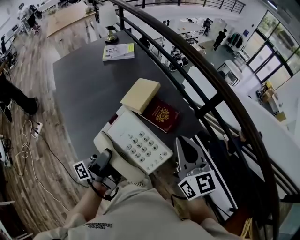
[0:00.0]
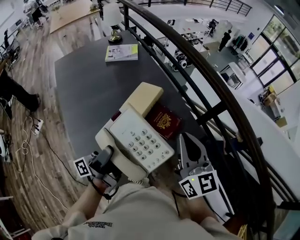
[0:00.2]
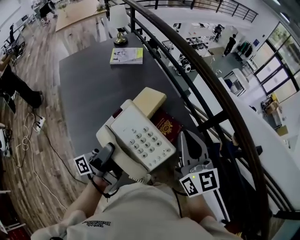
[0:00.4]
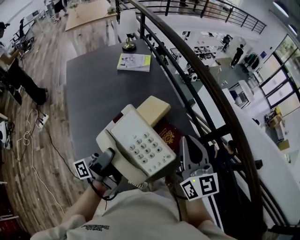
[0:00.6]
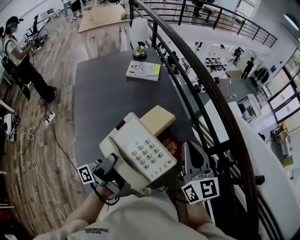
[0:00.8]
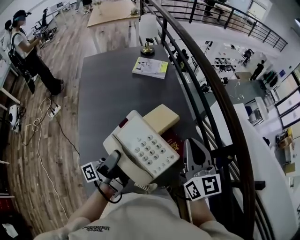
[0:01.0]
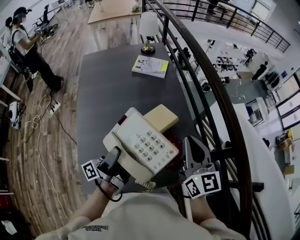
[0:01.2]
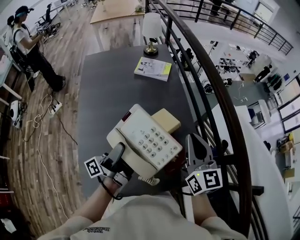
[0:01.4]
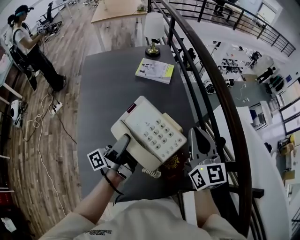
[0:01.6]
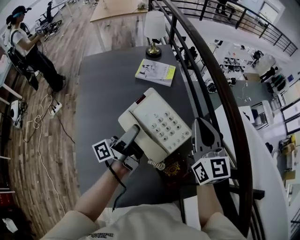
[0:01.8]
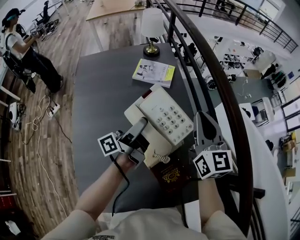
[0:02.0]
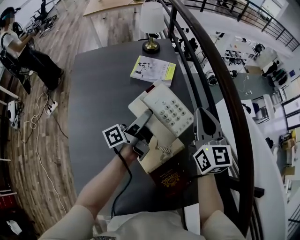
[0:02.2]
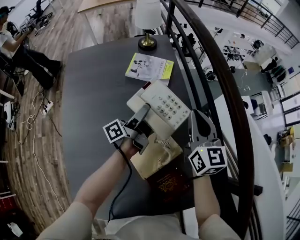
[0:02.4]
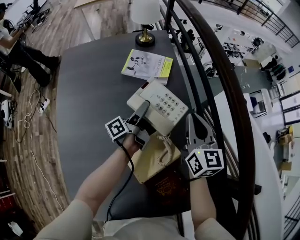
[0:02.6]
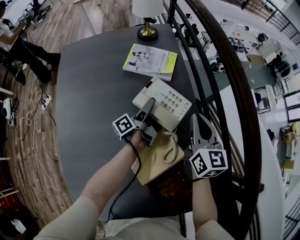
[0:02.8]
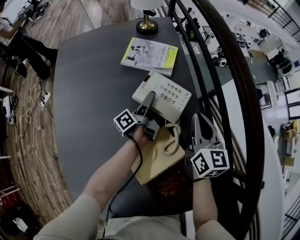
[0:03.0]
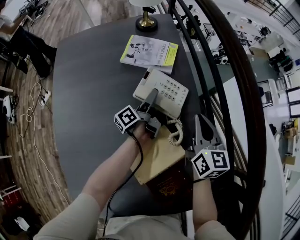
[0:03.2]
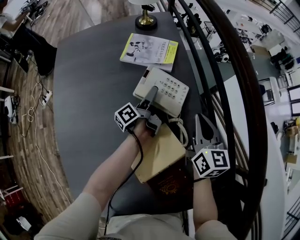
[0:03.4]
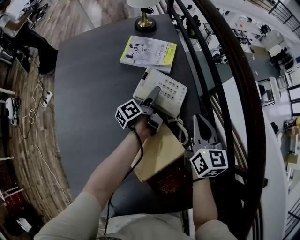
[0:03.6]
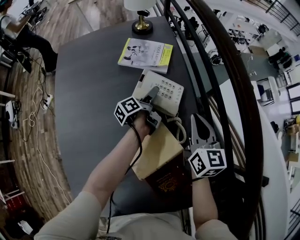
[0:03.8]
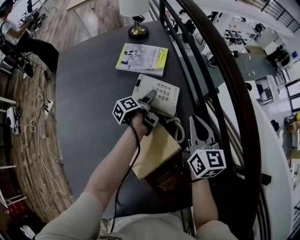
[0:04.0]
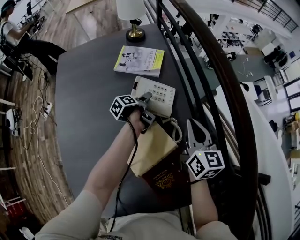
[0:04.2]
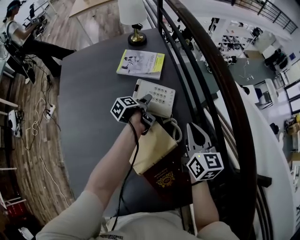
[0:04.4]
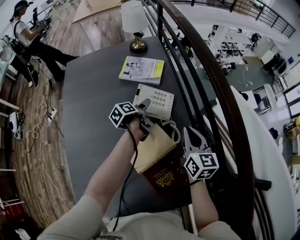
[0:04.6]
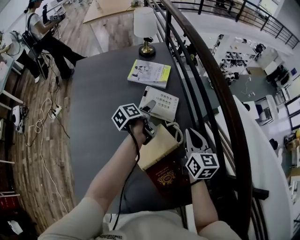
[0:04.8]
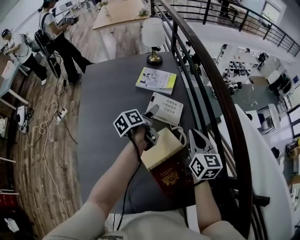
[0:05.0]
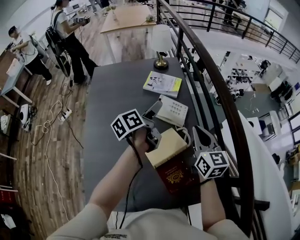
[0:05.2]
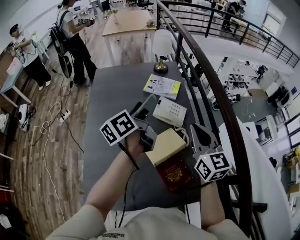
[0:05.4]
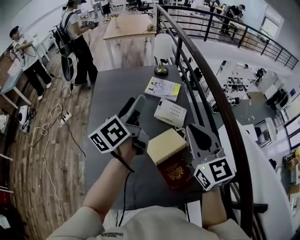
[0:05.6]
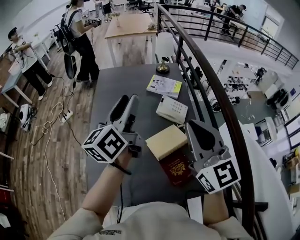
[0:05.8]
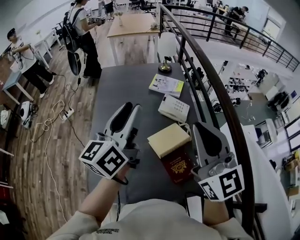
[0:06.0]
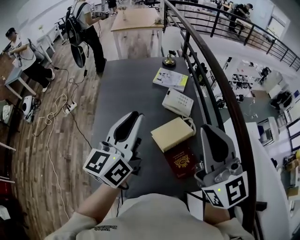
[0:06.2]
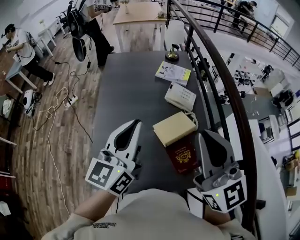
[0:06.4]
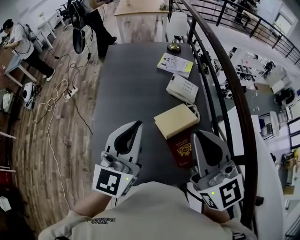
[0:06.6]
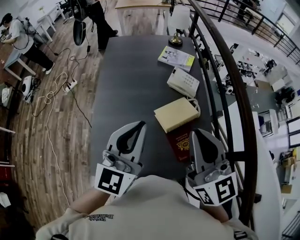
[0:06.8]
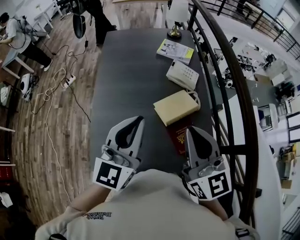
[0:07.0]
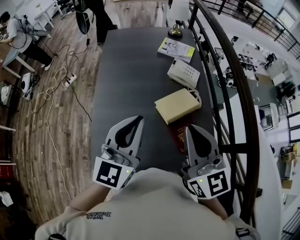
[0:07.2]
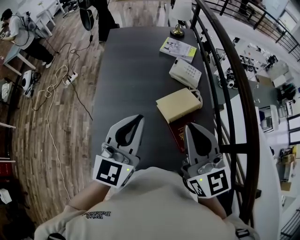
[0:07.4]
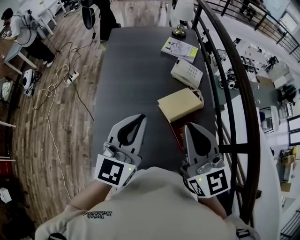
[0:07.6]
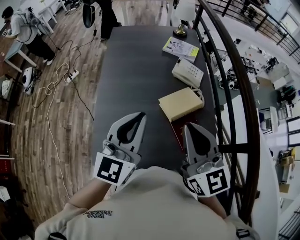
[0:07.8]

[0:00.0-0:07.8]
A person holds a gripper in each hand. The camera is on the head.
0:00.0 to 0:01.6: The right gripper shifts by some 30 cm.
0:01.6 to 0:03.2: The right gripper changes place by some 30 cm.
0:03.2 to 0:04.6: The right gripper ends up roughly 10 cm from where it was.
0:04.6 to 0:06.2: The right gripper shifts some 35 cm upward, and angles its fingers upward, by some 30 degrees.
0:06.2 to 0:07.8: The right gripper shifts approximately 10 cm downward.

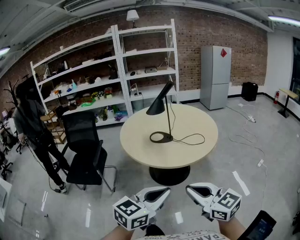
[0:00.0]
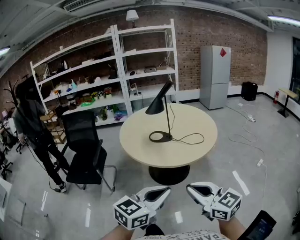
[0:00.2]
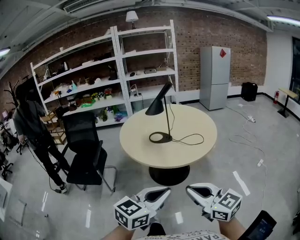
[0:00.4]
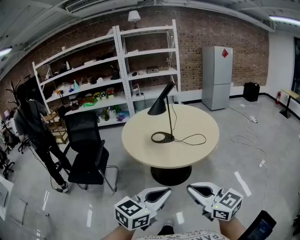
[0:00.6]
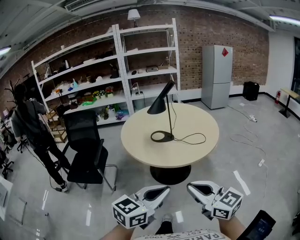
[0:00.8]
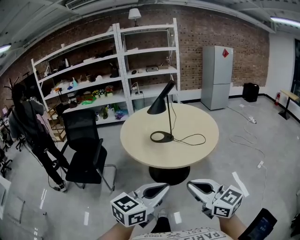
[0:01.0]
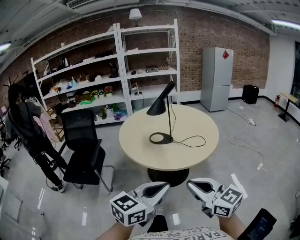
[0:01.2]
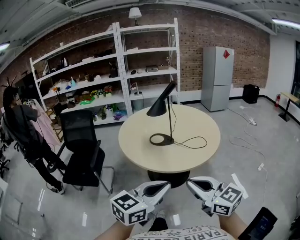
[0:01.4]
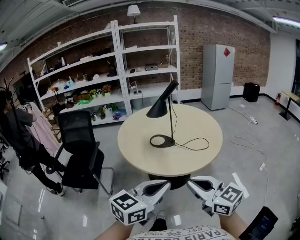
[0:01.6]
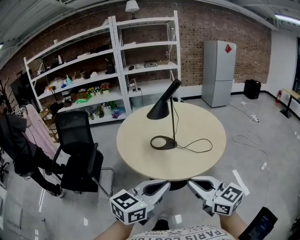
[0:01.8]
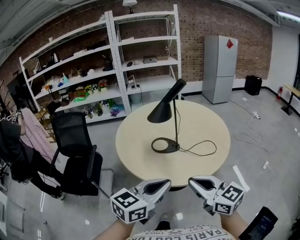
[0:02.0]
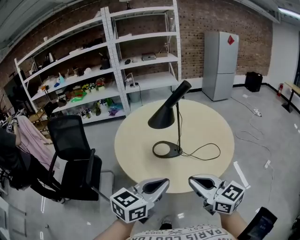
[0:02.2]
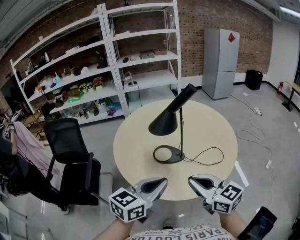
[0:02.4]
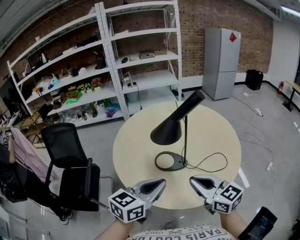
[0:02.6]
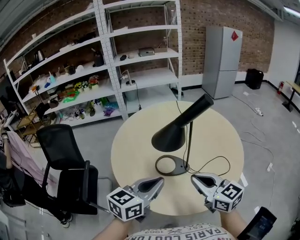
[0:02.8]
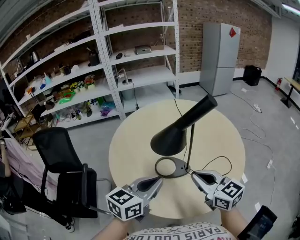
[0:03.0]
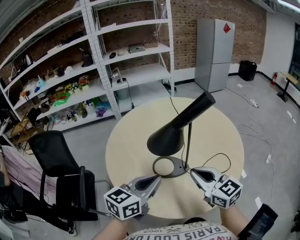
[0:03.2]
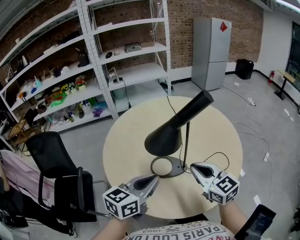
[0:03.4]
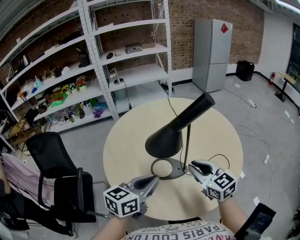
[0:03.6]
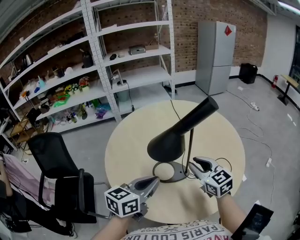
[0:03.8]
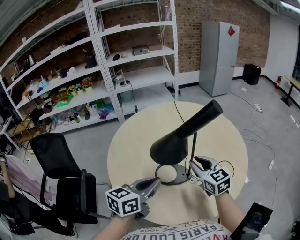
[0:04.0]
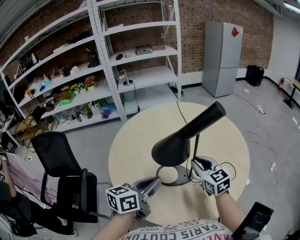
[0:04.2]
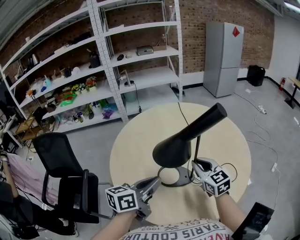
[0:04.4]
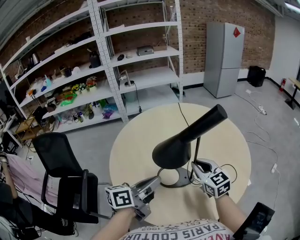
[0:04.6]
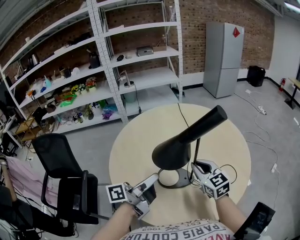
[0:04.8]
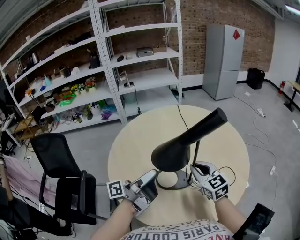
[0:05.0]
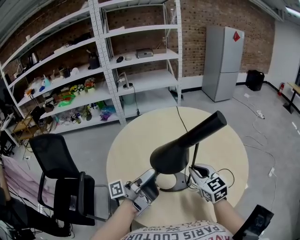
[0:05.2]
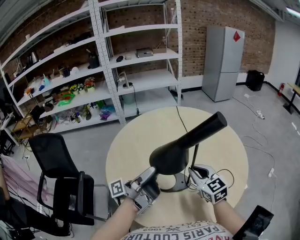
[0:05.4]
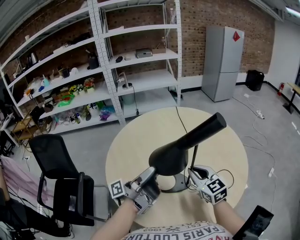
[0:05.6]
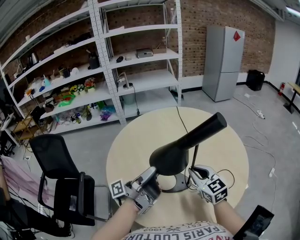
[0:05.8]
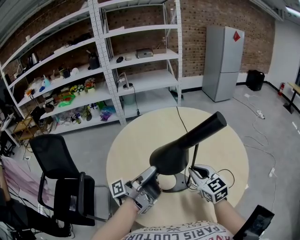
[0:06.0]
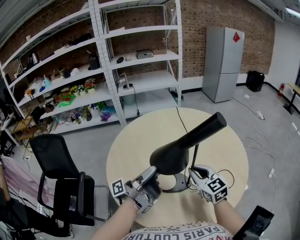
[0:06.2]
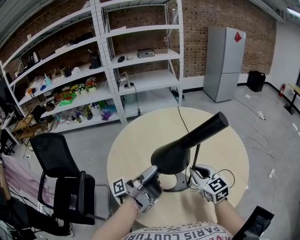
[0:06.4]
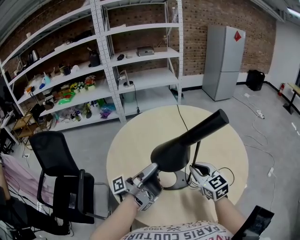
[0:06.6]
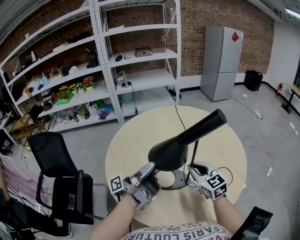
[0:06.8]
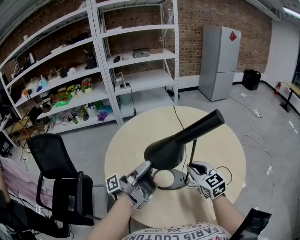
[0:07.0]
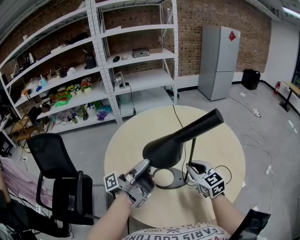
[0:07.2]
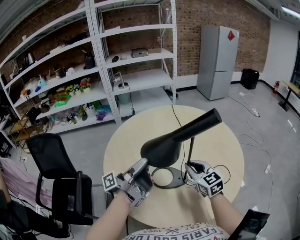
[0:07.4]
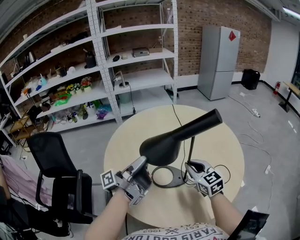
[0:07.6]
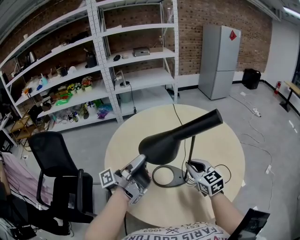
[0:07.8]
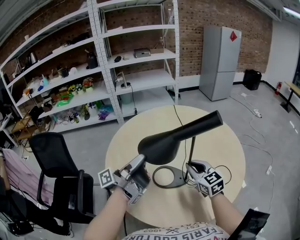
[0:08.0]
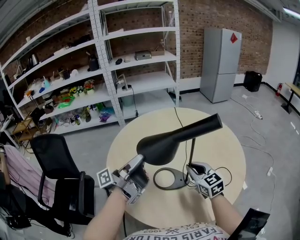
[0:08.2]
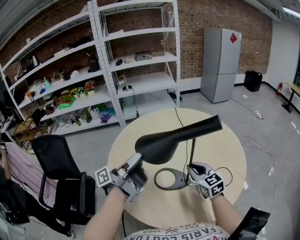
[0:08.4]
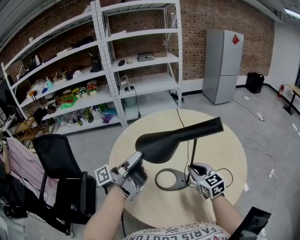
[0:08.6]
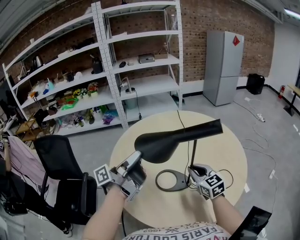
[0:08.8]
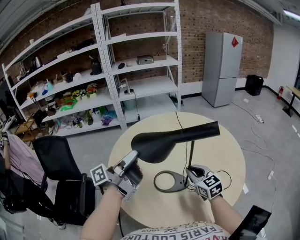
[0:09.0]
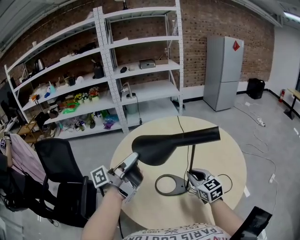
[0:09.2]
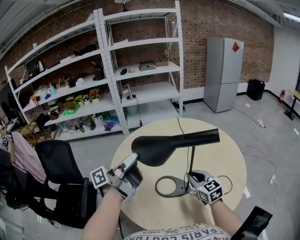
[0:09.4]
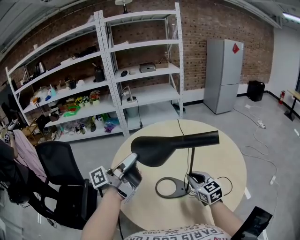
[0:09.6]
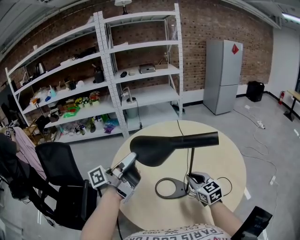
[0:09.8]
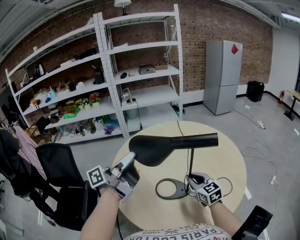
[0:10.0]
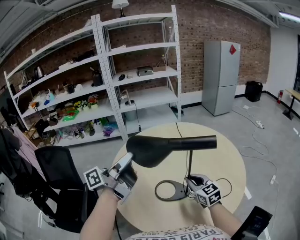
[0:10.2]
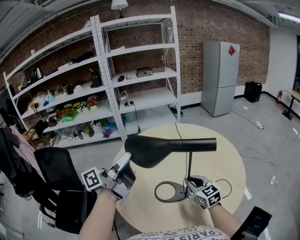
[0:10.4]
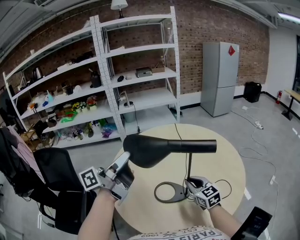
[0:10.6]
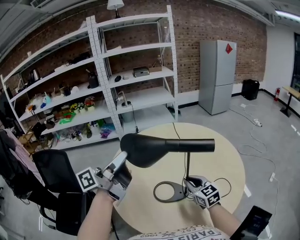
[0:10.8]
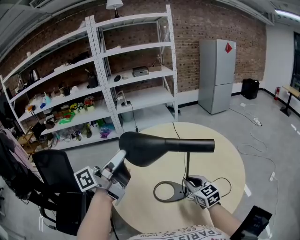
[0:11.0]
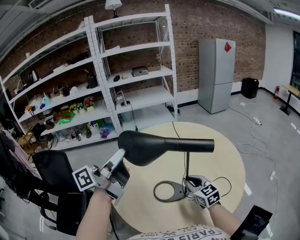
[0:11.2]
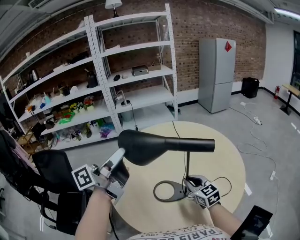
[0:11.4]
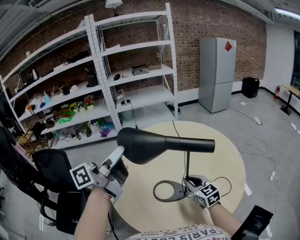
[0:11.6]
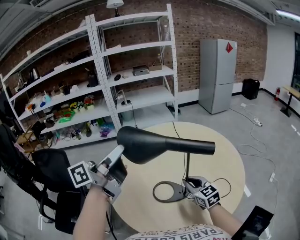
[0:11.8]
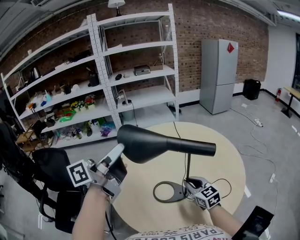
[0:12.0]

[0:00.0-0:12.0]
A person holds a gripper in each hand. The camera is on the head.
0:00.0 to 0:01.6: The grippers both shift forward by some 10 cm.
0:01.6 to 0:03.0: The two grippers go roughly 35 cm forward.
0:03.0 to 0:04.4: The left gripper is displaced forward by roughly 5 cm; the right gripper heads forward and downward, covering roughly 15 cm.
0:04.4 to 0:06.0: The left gripper heads forward, covering about 5 cm, and tips its fingers upward by about 40 degrees.
0:06.0 to 0:07.6: The grippers make only small movements.
0:07.6 to 0:09.0: The left gripper moves upward, about 5 cm.
0:09.0 to 0:10.4: The left gripper is displaced upward by approximately 5 cm.
0:10.4 to 0:12.0: The left gripper travels upward by approximately 5 cm.

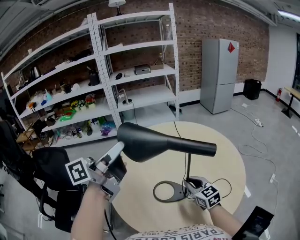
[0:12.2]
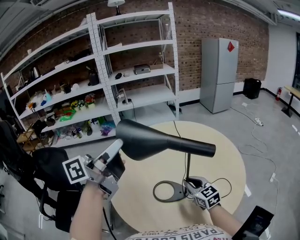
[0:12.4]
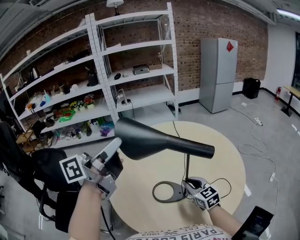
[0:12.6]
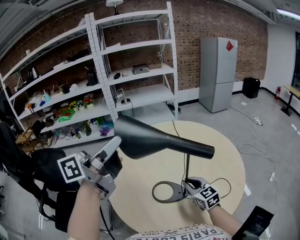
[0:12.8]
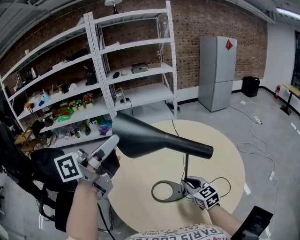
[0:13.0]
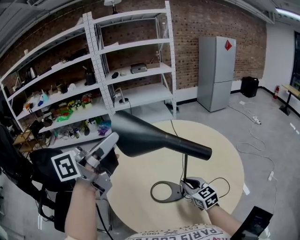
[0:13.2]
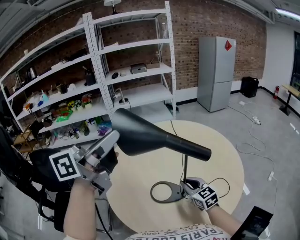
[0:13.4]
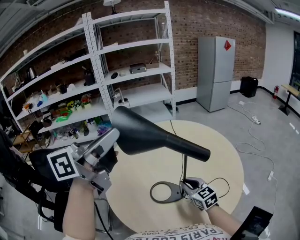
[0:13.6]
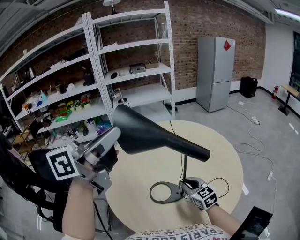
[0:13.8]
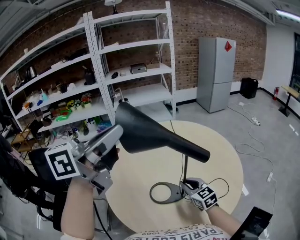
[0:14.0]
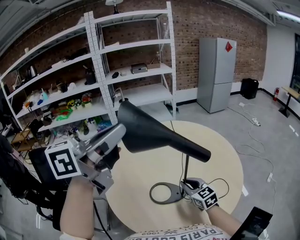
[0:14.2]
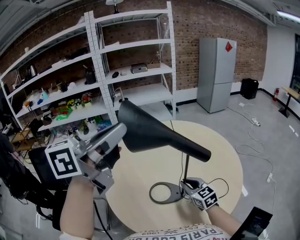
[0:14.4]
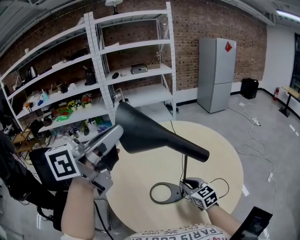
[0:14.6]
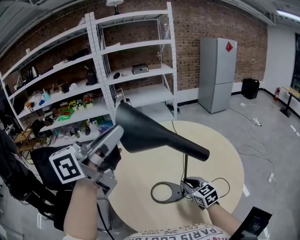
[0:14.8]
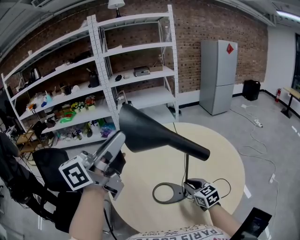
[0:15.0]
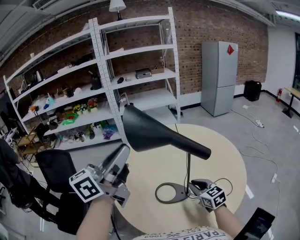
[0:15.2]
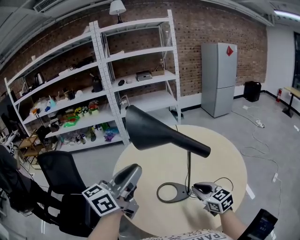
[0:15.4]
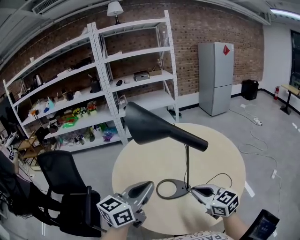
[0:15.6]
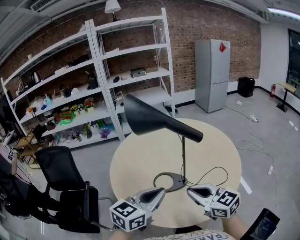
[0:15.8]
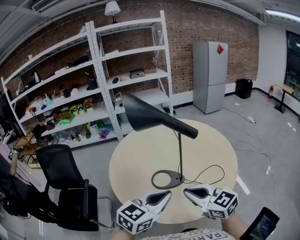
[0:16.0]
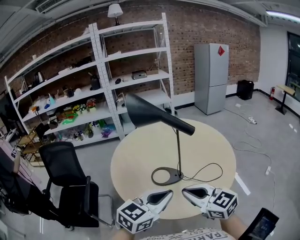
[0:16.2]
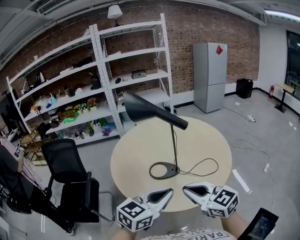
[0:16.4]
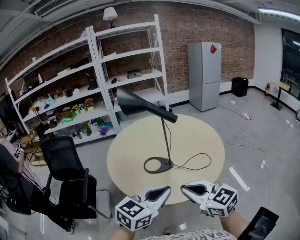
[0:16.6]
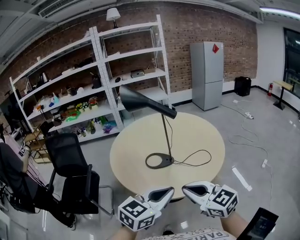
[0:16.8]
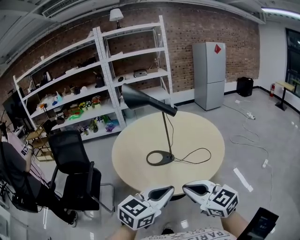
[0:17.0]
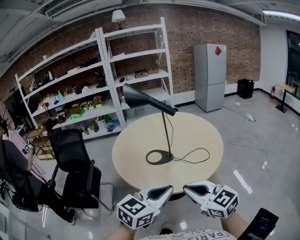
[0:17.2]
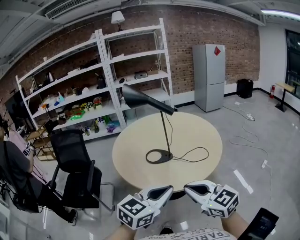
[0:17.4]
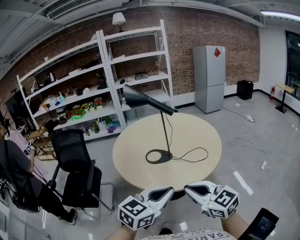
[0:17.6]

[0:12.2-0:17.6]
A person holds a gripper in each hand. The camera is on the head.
0:12.2 to 0:13.6: The left gripper travels upward by about 5 cm.
0:13.6 to 0:15.0: The grippers move only a little.
0:15.0 to 0:16.2: The left gripper travels downward, backward and to the right by approximately 35 cm, and points its fingers about 30 degrees further downward. The right gripper moves backward and upward, approximately 30 cm.
0:16.2 to 0:17.6: Both grippers move backward and to the right, some 20 cm.
